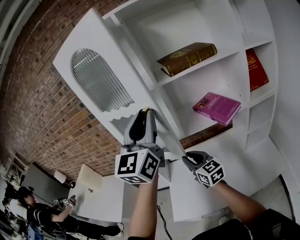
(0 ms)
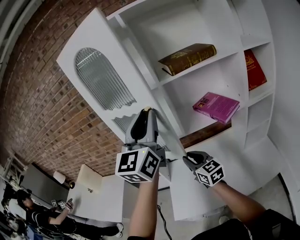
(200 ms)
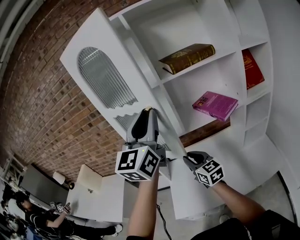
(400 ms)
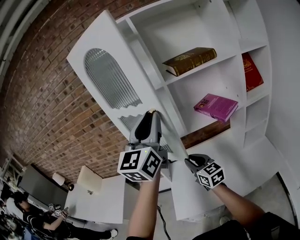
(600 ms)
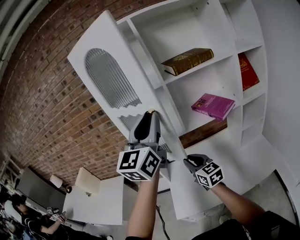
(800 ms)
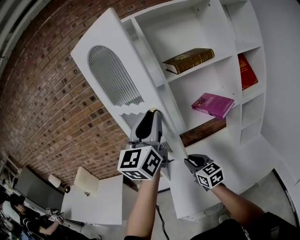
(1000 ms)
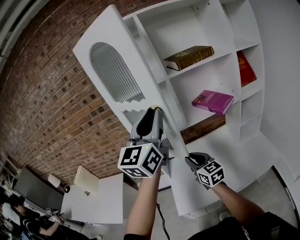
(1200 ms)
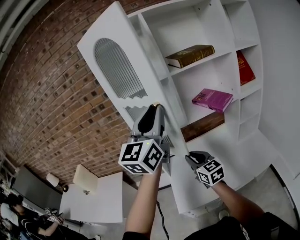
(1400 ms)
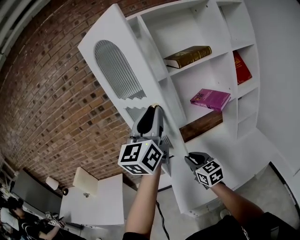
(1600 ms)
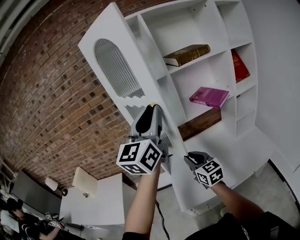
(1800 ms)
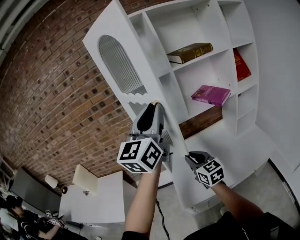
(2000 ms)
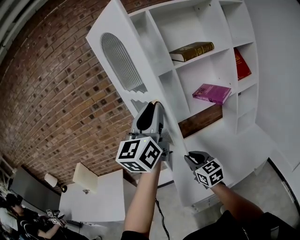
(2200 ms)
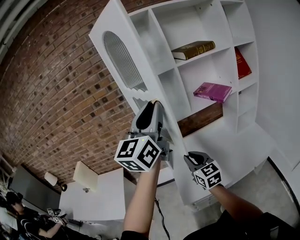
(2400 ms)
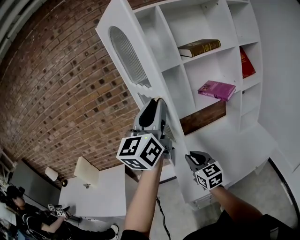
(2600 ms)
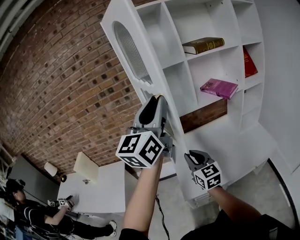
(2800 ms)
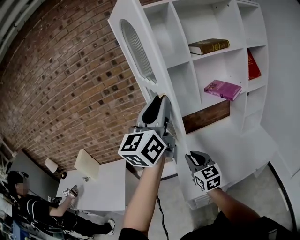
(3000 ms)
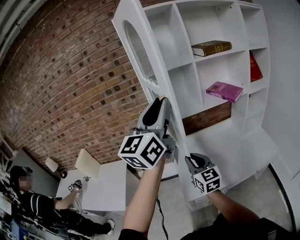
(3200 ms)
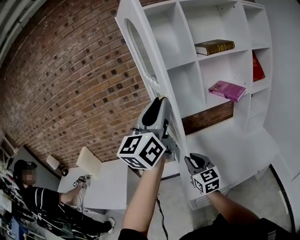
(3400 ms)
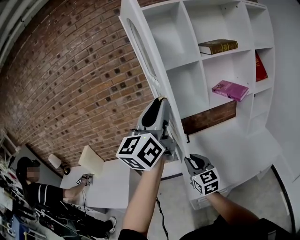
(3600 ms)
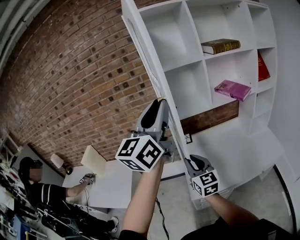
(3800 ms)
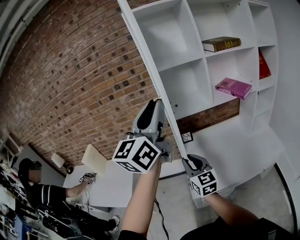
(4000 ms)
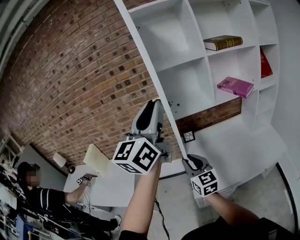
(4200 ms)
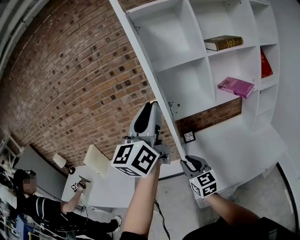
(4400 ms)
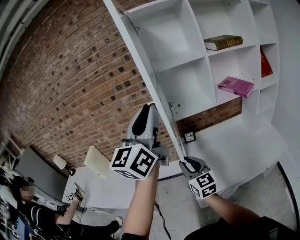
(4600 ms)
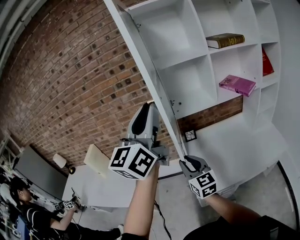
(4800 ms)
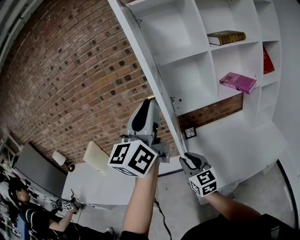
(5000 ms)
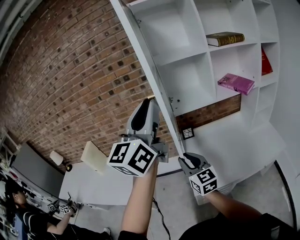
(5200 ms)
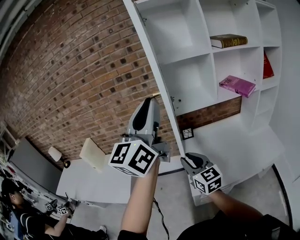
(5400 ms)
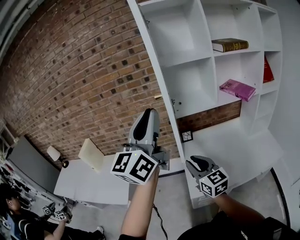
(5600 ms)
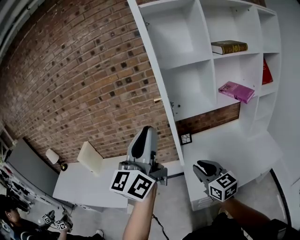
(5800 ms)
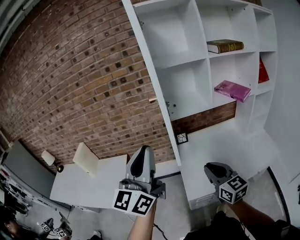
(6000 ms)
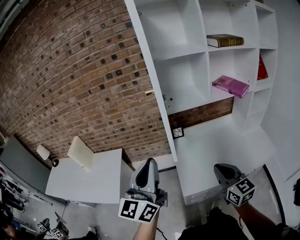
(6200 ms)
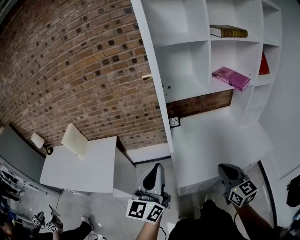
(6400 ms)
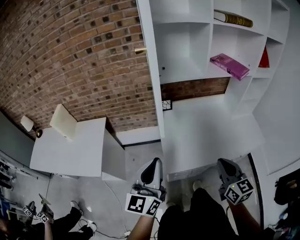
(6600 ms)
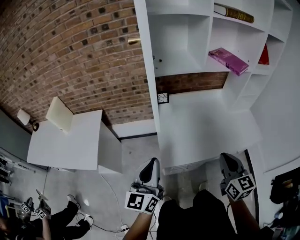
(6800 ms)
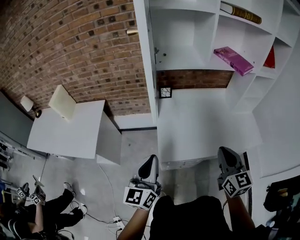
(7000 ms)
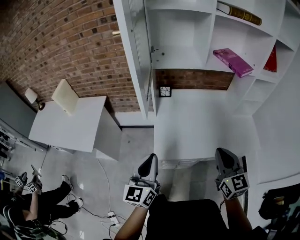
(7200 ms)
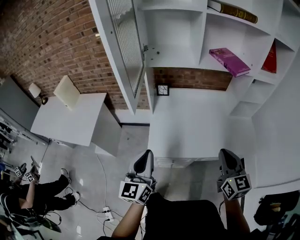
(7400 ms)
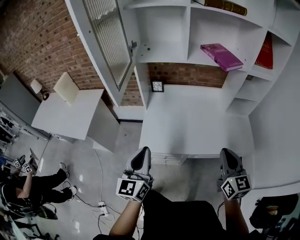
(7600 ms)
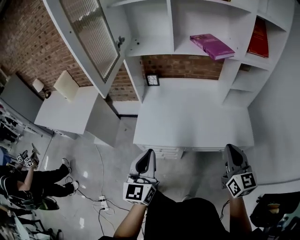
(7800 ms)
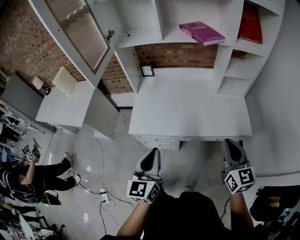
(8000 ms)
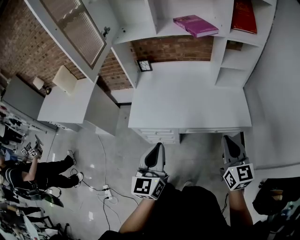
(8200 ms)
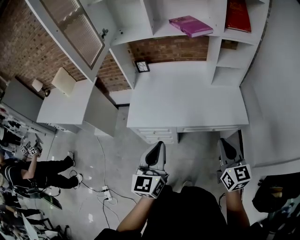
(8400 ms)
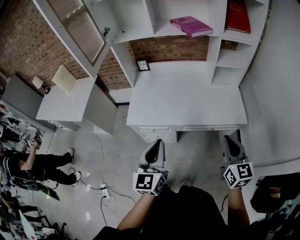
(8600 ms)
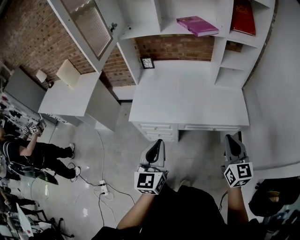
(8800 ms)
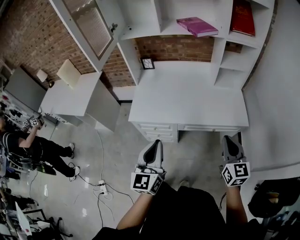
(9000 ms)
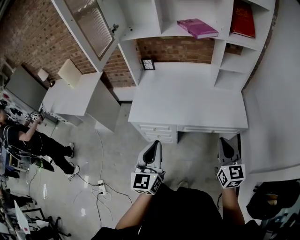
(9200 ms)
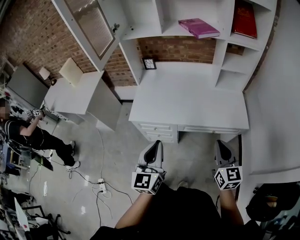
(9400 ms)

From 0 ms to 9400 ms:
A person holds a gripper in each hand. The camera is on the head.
From 0 ms to 1600 ms: Both grippers travel together backward and to the left, some 10 cm.
From 1600 ms to 3200 ms: Both grippers move to the left and backward, some 10 cm.
From 3200 ms to 4800 ms: The two grippers go about 10 cm to the left.
From 4800 ms to 6200 ms: The right gripper heads to the right and backward, covering about 15 cm, and closes its fingers, while the left gripper travels downward and backward by roughly 20 cm.
From 6200 ms to 7800 ms: The left gripper goes about 40 cm to the right and downward, and rotates some 30 degrees, while the right gripper travels to the right by about 40 cm.
From 7800 ms to 9400 ms: The right gripper goes roughly 15 cm backward, downward and to the right. Meanwhile the left gripper moves to the right and backward, some 15 cm.

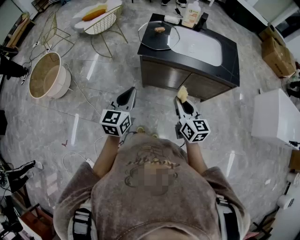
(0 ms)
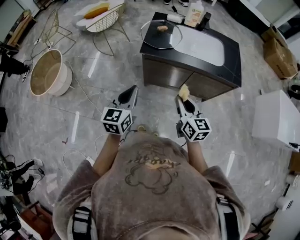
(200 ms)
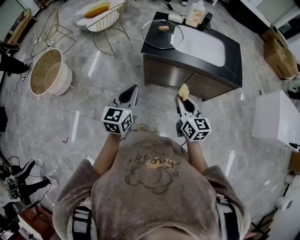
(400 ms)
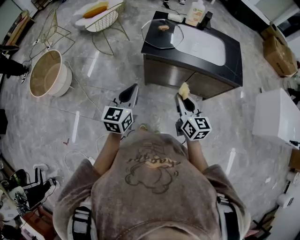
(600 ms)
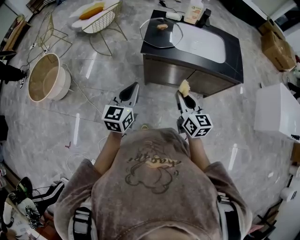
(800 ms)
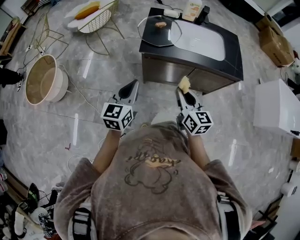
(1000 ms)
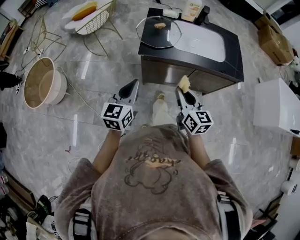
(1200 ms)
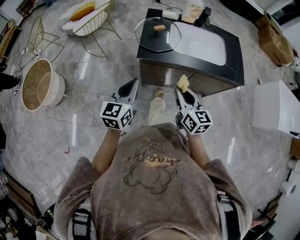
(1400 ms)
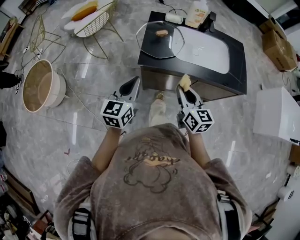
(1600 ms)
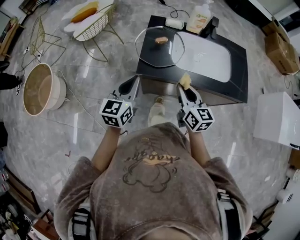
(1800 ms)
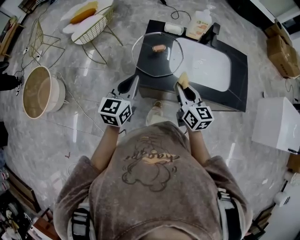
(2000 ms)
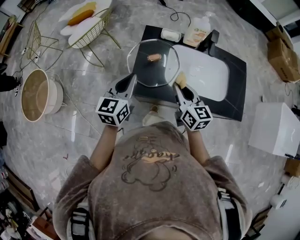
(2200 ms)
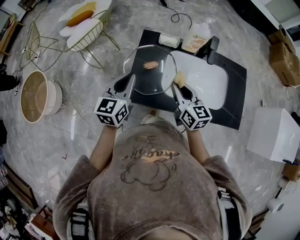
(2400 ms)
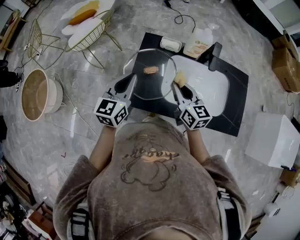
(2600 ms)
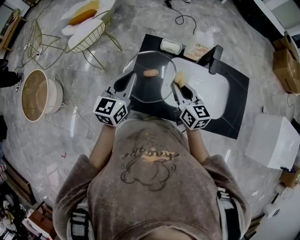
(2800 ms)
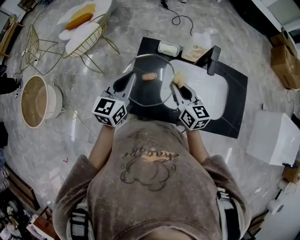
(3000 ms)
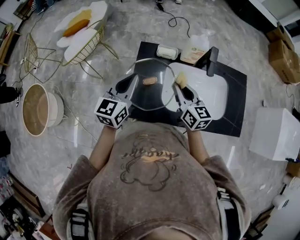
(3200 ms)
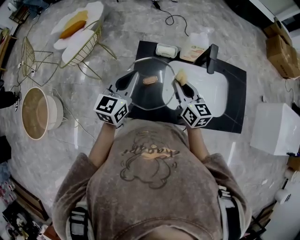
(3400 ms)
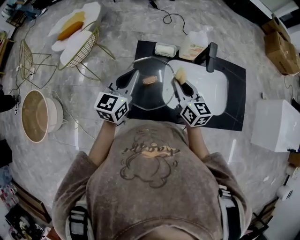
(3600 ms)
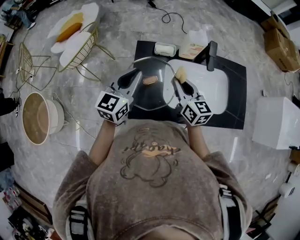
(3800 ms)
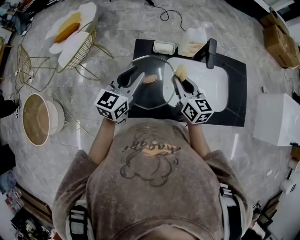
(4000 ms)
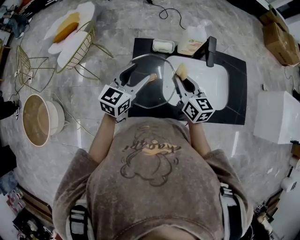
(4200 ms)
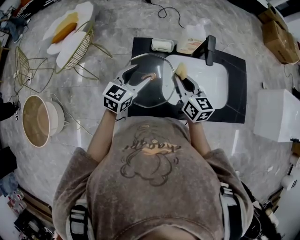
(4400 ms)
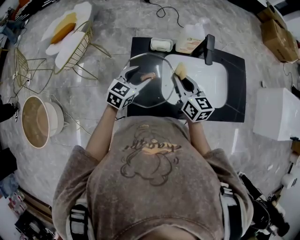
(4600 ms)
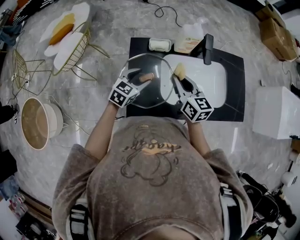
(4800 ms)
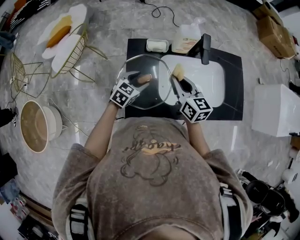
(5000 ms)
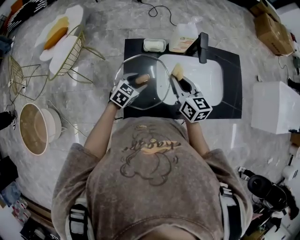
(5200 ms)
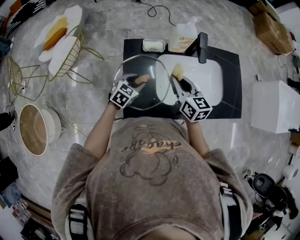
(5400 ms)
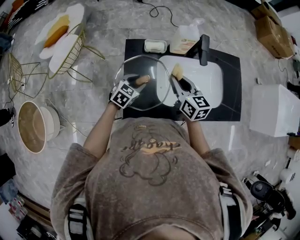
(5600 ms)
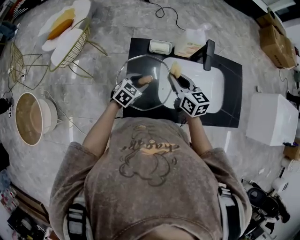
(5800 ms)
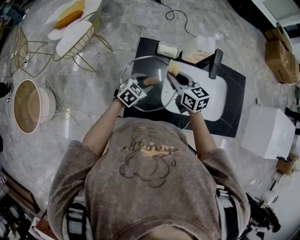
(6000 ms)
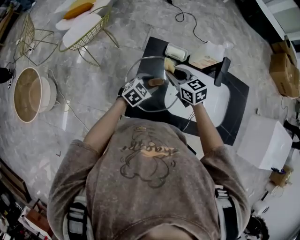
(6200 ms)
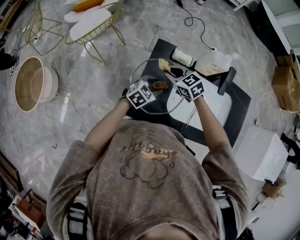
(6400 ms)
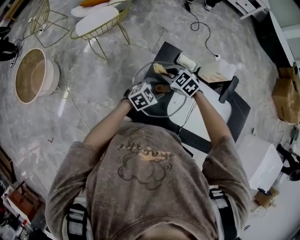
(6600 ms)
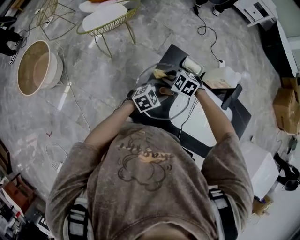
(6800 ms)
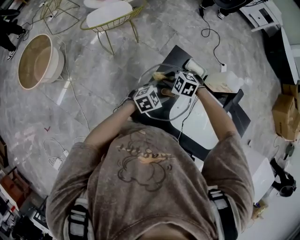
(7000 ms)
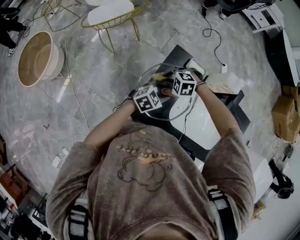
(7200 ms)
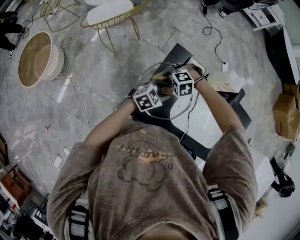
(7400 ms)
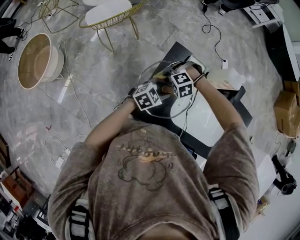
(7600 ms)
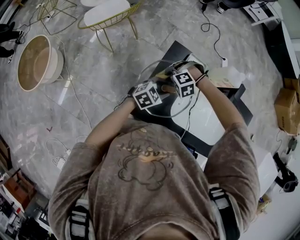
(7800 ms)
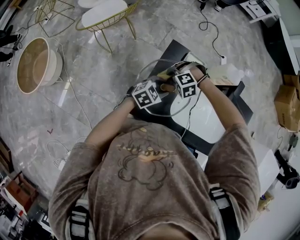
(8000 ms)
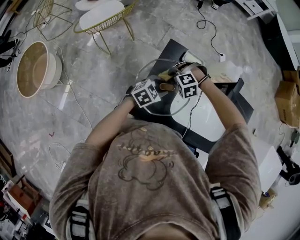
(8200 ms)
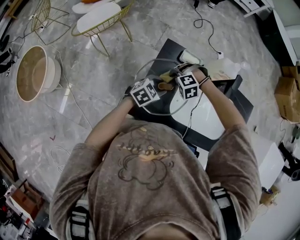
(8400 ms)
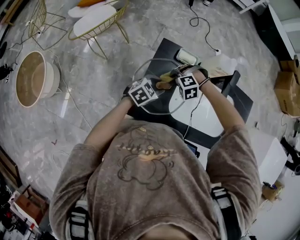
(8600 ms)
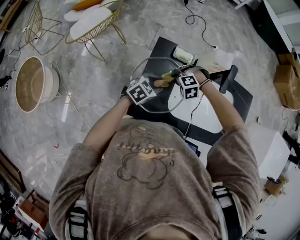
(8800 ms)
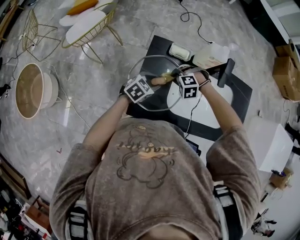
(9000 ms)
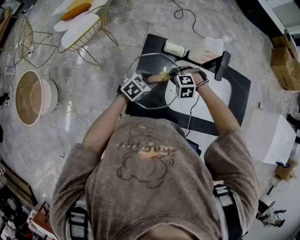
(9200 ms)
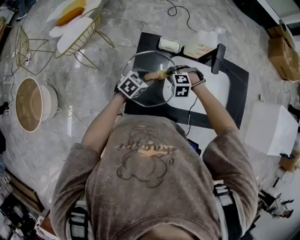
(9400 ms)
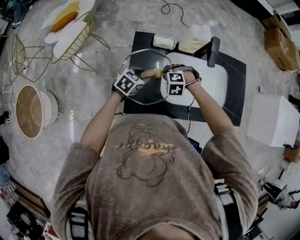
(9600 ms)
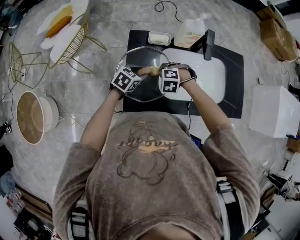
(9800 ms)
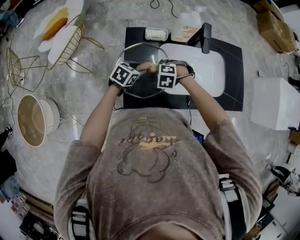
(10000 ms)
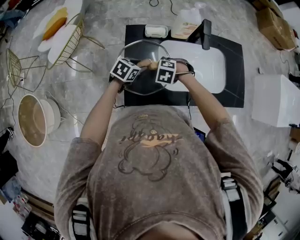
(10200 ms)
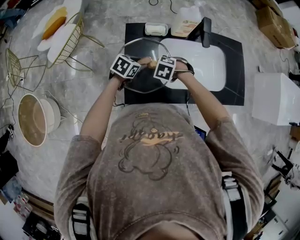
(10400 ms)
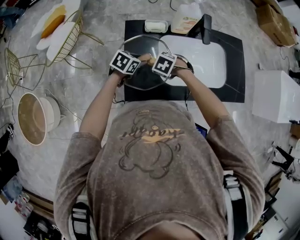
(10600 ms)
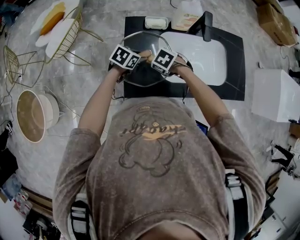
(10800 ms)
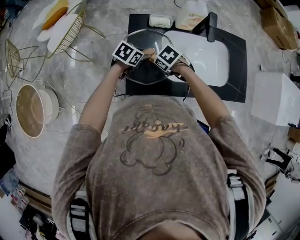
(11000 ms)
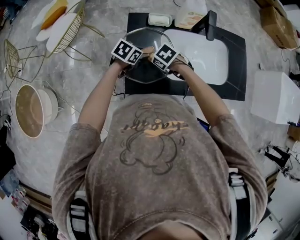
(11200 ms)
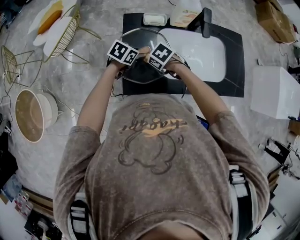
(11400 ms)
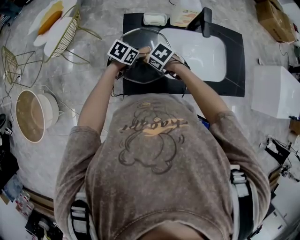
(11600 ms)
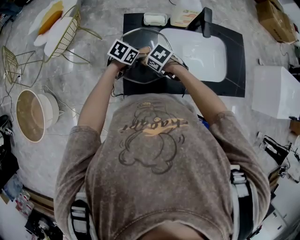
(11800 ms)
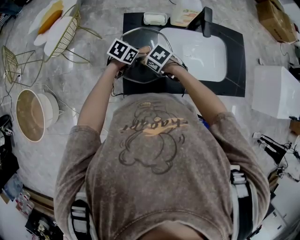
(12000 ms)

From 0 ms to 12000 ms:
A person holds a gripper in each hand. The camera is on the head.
From 0 ms to 1600 ms: Both grippers travel together forward, some 20 cm.
From 1600 ms to 3000 ms: The grippers both shift forward by about 35 cm.
From 3000 ms to 4400 ms: The left gripper travels downward by approximately 5 cm, swivels roughly 30 degrees, and opens its fingers.
From 4400 ms to 6000 ms: The left gripper travels downward by some 15 cm, and changes its angle by approximately 20 degrees, while the right gripper is displaced to the left by roughly 5 cm, and changes its angle by about 20 degrees.
From 6000 ms to 7600 ms: The right gripper goes roughly 15 cm downward, and rolls counterclockwise, seen from behind, by roughly 100 degrees.
From 7600 ms to 9000 ms: The right gripper shifts by some 10 cm, and rotates some 30 degrees.
From 9000 ms to 10400 ms: The right gripper shifts by about 5 cm, and rolls clockwise, seen from behind, by some 50 degrees.
From 10400 ms to 12000 ms: The right gripper ends up some 5 cm from where it was, and turns by approximately 30 degrees.

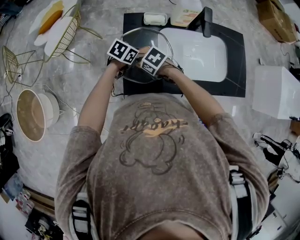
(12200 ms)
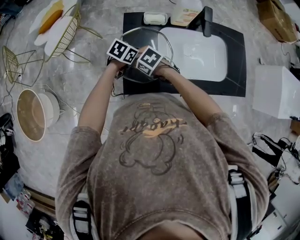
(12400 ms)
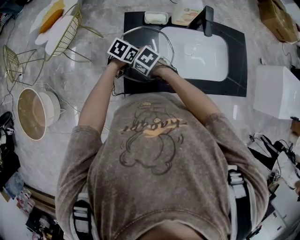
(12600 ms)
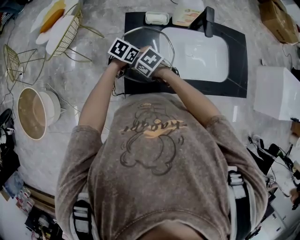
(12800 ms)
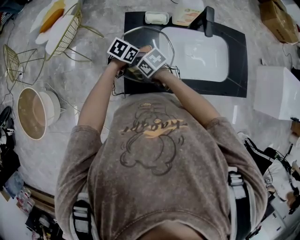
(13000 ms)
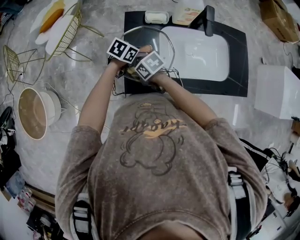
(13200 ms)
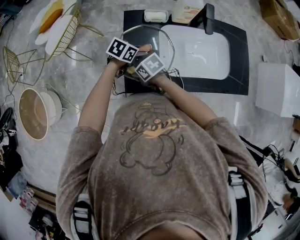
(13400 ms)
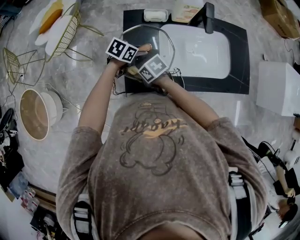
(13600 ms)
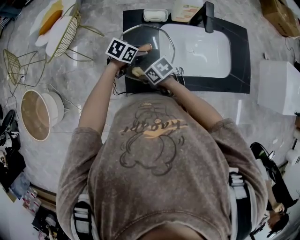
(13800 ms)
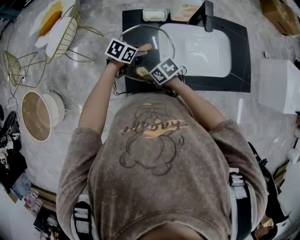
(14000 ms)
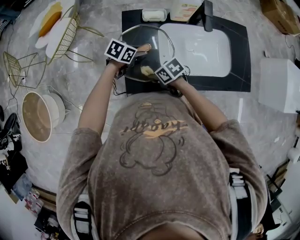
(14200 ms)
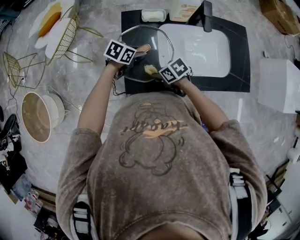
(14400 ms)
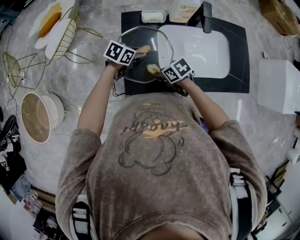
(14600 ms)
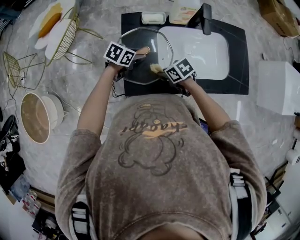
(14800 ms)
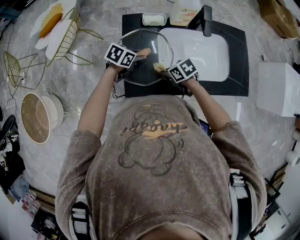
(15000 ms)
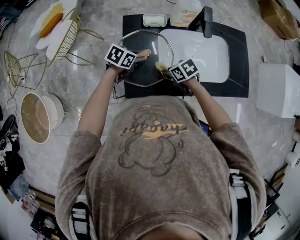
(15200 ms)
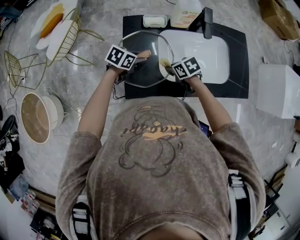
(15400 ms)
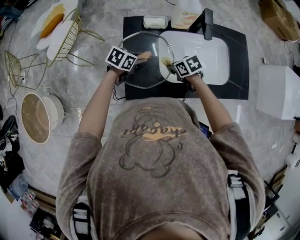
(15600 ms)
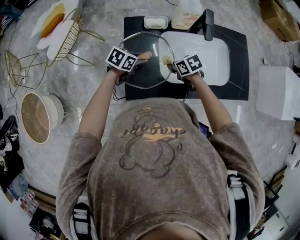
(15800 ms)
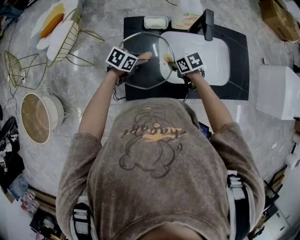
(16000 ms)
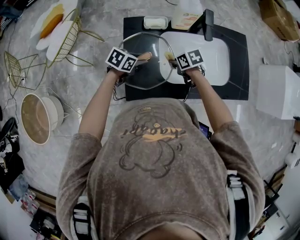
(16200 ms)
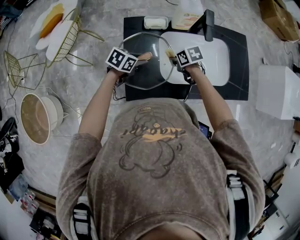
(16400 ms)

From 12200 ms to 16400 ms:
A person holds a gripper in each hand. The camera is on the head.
From 12200 ms to 13600 ms: The right gripper ends up roughly 5 cm from where it was, and rotates roughly 20 degrees.
From 13600 ms to 15000 ms: The right gripper shifts by some 15 cm.
From 15000 ms to 16400 ms: The right gripper changes place by some 10 cm.
